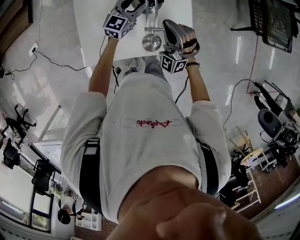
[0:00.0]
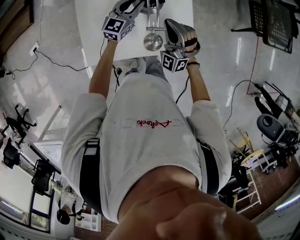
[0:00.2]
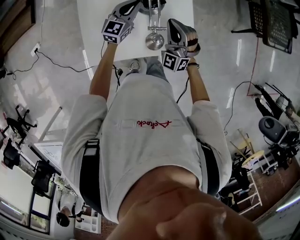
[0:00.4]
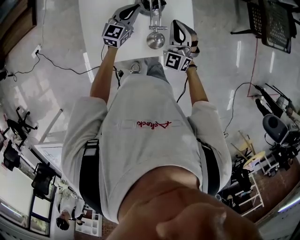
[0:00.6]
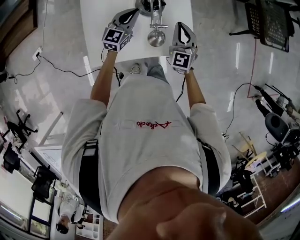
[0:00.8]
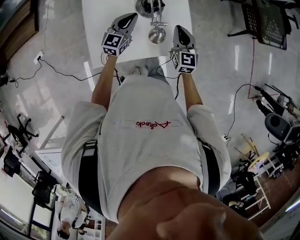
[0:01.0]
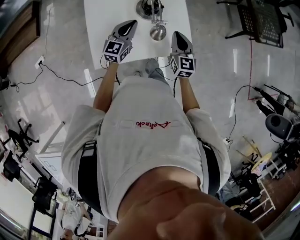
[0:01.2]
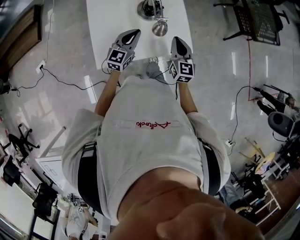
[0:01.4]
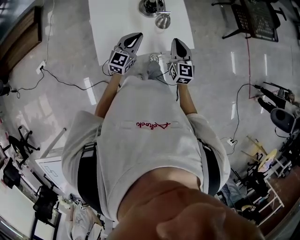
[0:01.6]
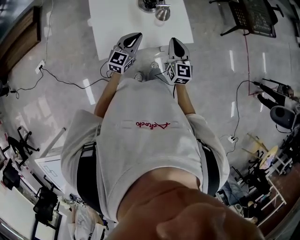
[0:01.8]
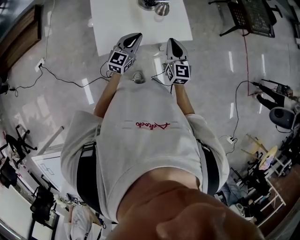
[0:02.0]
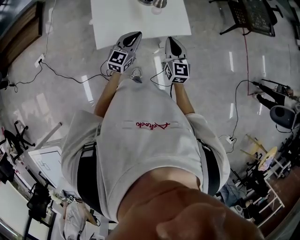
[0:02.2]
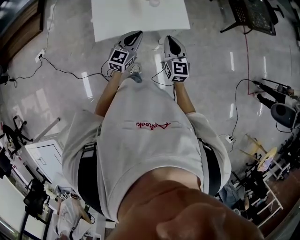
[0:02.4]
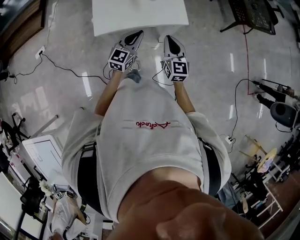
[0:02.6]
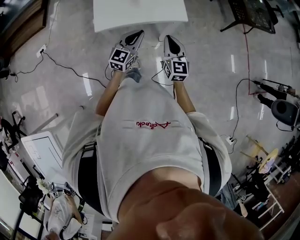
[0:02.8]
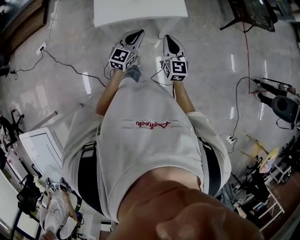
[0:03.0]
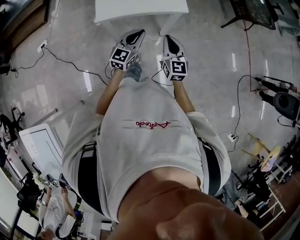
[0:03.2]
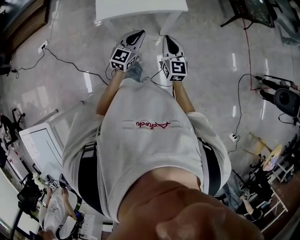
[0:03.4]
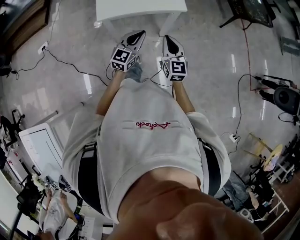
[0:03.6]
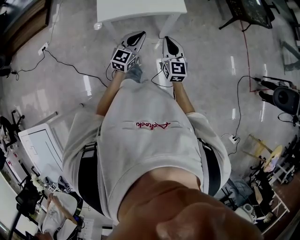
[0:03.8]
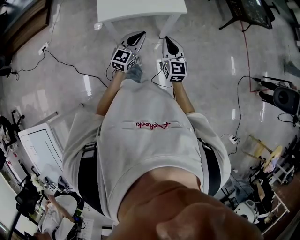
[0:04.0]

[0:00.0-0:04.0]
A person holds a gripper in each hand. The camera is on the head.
0:00.0 to 0:01.4: The left gripper shifts roughly 15 cm backward, and closes up; the right gripper travels to the right and backward by about 10 cm, and rolls clockwise, seen from behind, by some 70 degrees.
0:01.4 to 0:02.6: The left gripper travels backward and to the right by about 20 cm, while the right gripper travels backward by about 20 cm.
0:02.6 to 0:04.0: Both grippers travel together backward, roughly 10 cm.

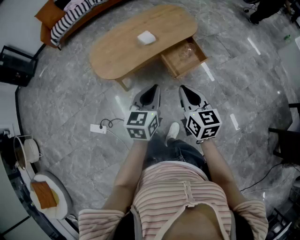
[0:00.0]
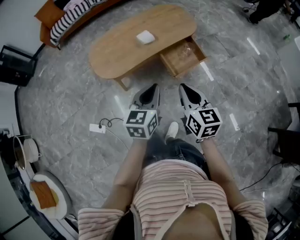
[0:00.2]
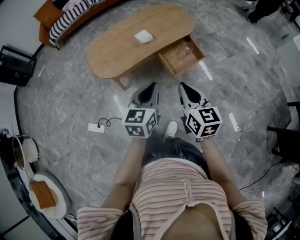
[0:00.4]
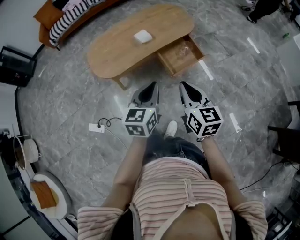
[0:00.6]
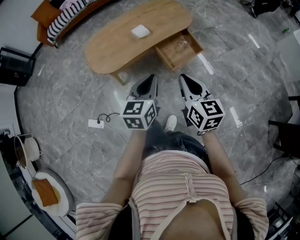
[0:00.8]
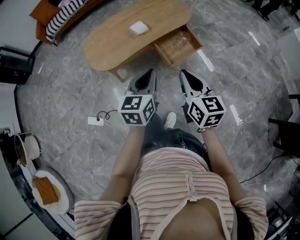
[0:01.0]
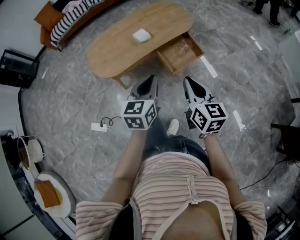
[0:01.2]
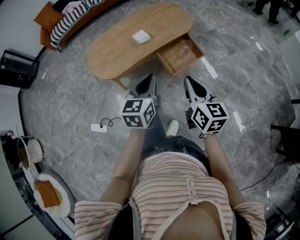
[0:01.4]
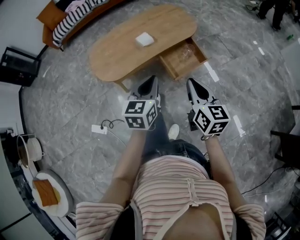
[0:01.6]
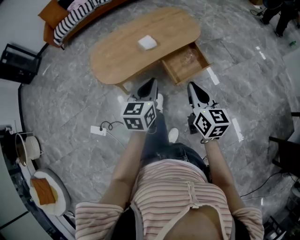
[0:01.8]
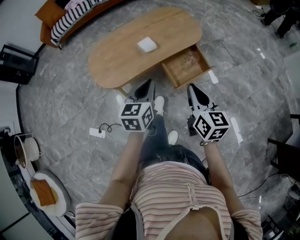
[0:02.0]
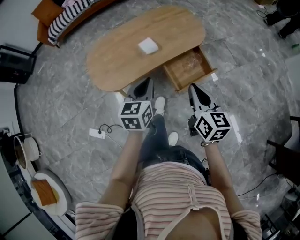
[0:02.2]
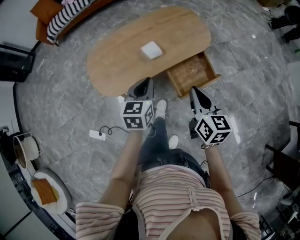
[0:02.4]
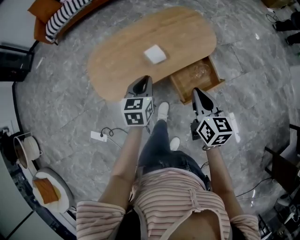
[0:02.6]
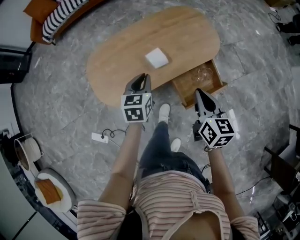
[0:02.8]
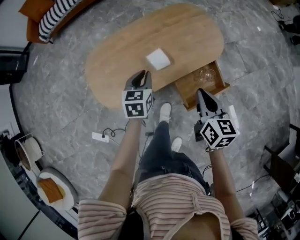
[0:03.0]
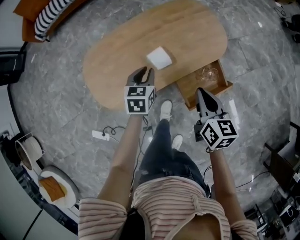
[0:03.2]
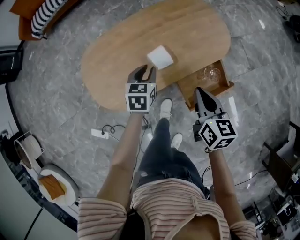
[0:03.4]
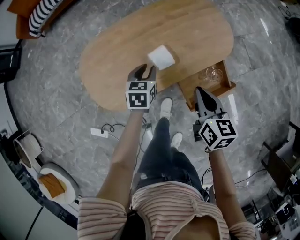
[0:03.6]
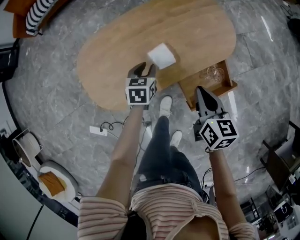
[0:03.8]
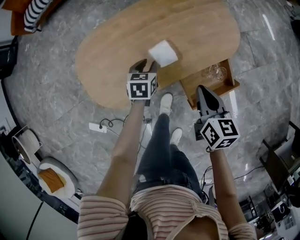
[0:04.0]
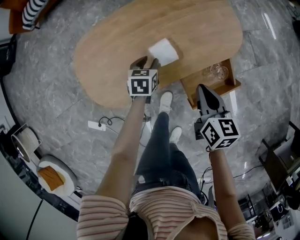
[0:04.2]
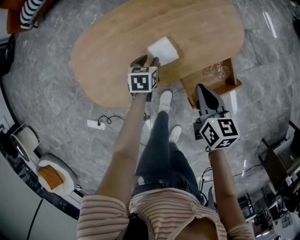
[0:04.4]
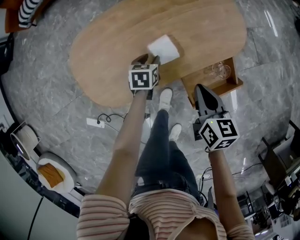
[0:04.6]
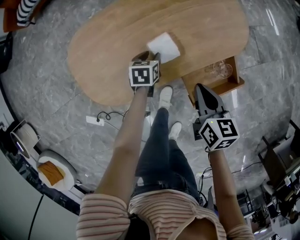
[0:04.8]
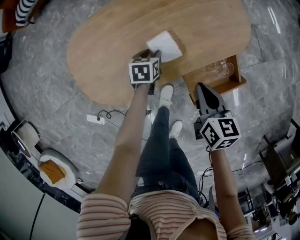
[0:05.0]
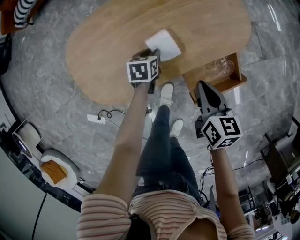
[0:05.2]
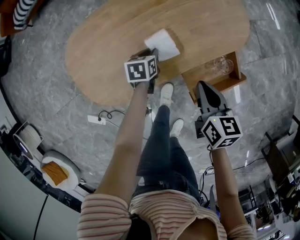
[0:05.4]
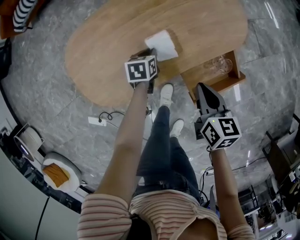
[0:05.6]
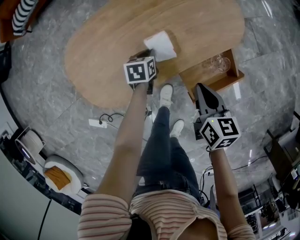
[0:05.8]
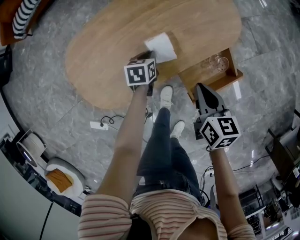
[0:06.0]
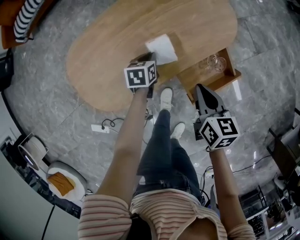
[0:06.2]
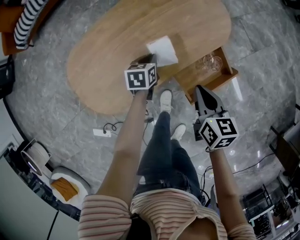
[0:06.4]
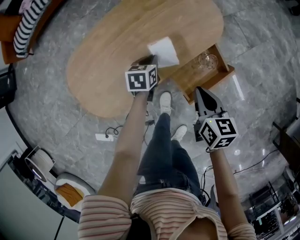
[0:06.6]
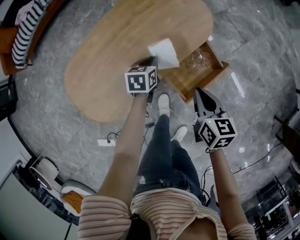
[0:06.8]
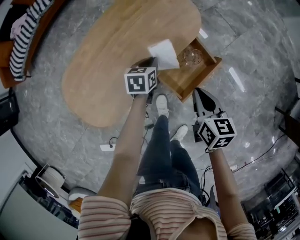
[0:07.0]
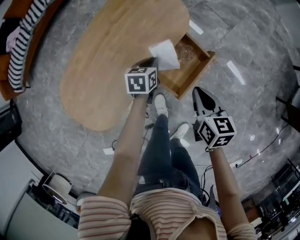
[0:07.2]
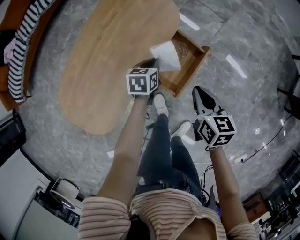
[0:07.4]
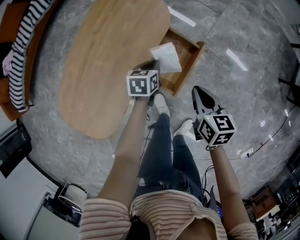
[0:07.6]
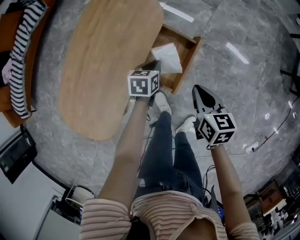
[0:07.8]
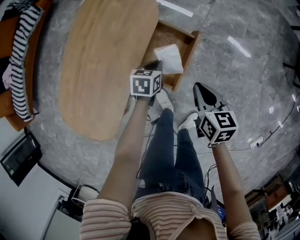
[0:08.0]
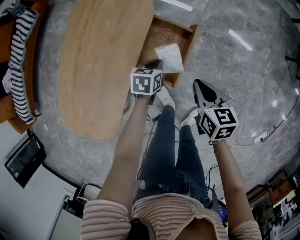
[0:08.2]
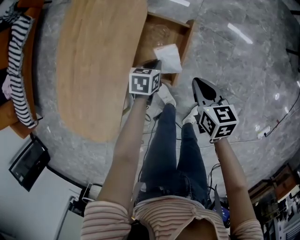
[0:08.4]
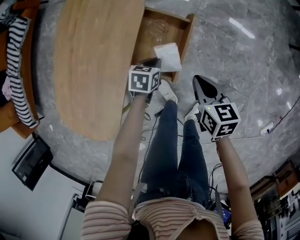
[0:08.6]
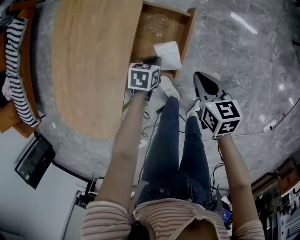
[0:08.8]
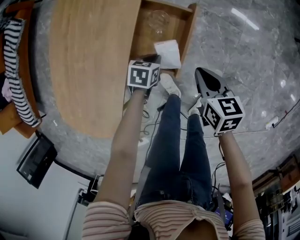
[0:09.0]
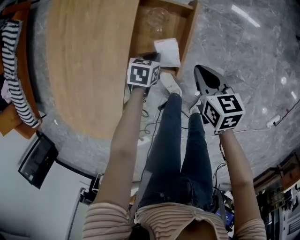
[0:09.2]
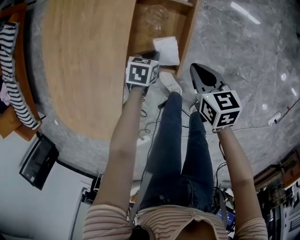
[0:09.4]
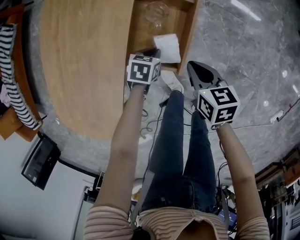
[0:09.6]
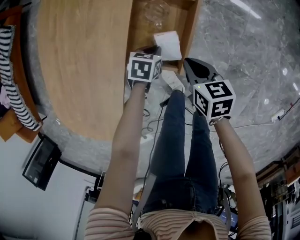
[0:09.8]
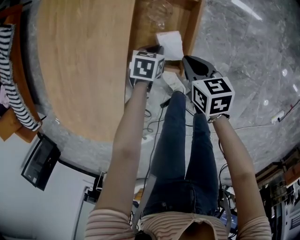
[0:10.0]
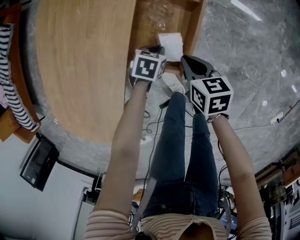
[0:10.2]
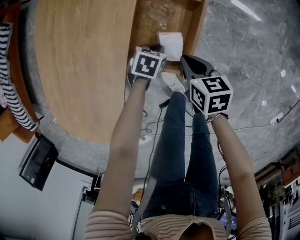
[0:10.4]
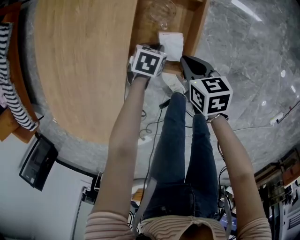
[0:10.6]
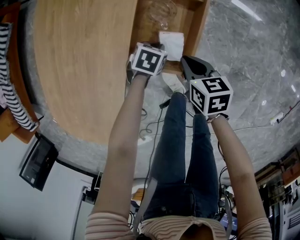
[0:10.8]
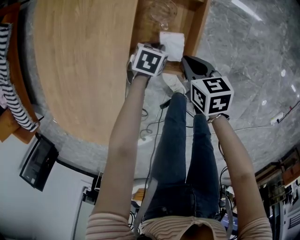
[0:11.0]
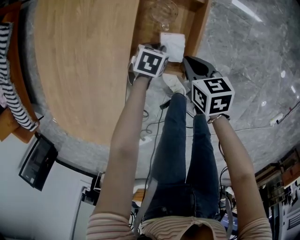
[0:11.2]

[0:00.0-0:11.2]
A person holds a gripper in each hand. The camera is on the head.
0:00.0 to 0:01.6: The left gripper heads forward, covering roughly 5 cm, while the right gripper moves to the right, roughly 5 cm.
0:01.6 to 0:03.2: The left gripper heads forward and downward, covering about 40 cm, and changes its angle by roughly 20 degrees, while the right gripper moves forward, about 35 cm.
0:03.2 to 0:04.8: The right gripper moves downward, roughly 10 cm. The left gripper is displaced downward by roughly 20 cm, rotates roughly 20 degrees, and opens its fingers.
0:04.8 to 0:06.4: The left gripper moves to the right and upward, about 5 cm, and closes; the right gripper changes place by roughly 5 cm.
0:06.4 to 0:08.0: The left gripper shifts by some 25 cm, and rotates some 40 degrees. The right gripper shifts by some 20 cm, and rotates about 30 degrees.
0:08.0 to 0:09.6: The two grippers go some 15 cm downward. The left gripper rotates about 20 degrees.
0:09.6 to 0:11.2: The right gripper travels downward by about 5 cm.

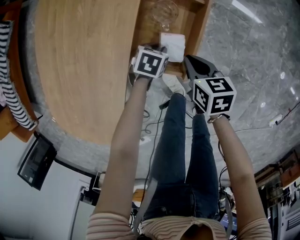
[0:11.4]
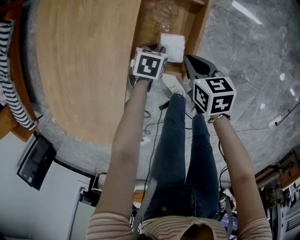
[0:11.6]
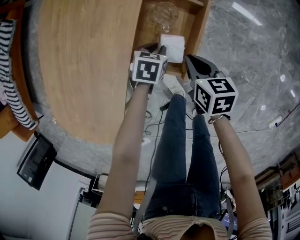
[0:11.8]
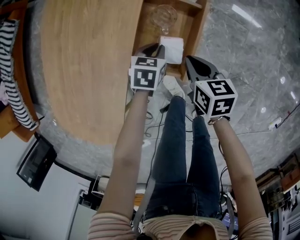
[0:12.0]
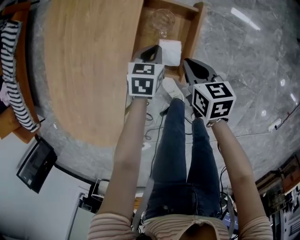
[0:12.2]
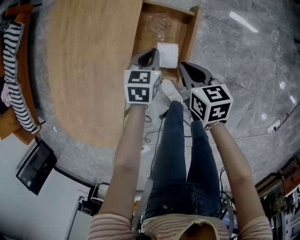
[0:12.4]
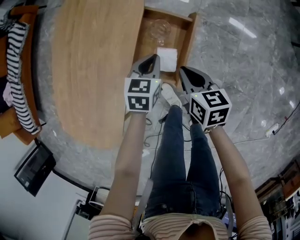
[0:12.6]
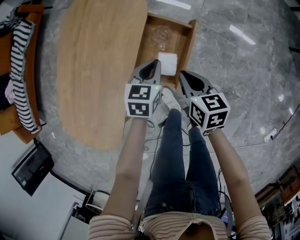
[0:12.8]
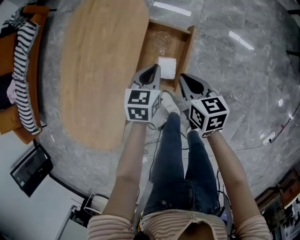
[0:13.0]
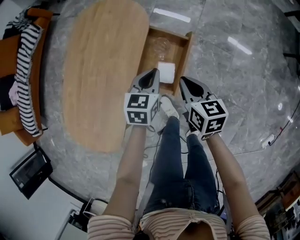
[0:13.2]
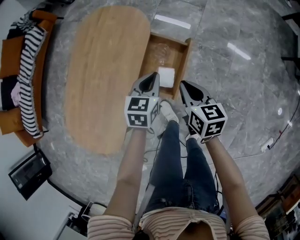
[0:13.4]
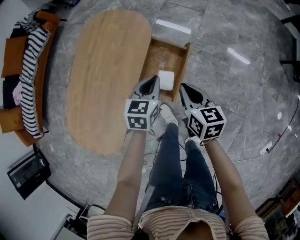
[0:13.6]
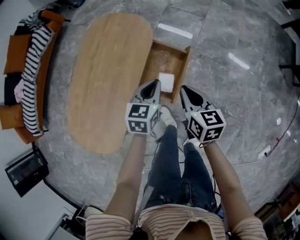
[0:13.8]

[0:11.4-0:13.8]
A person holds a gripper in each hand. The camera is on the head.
0:11.4 to 0:12.6: The right gripper is displaced upward by roughly 10 cm. Meanwhile the left gripper shifts about 20 cm upward, and swivels some 30 degrees.
0:12.6 to 0:13.8: The two grippers go about 15 cm upward.

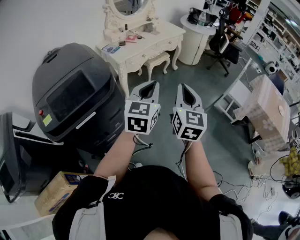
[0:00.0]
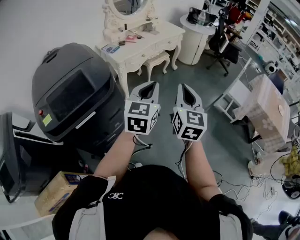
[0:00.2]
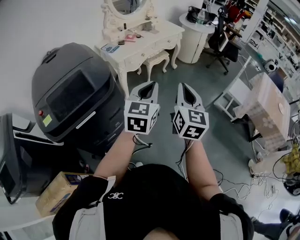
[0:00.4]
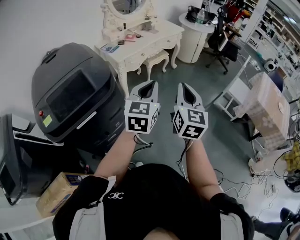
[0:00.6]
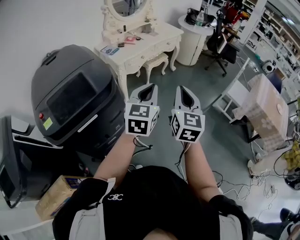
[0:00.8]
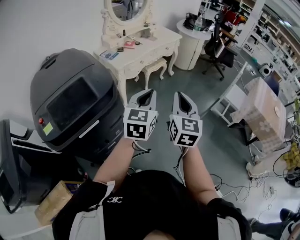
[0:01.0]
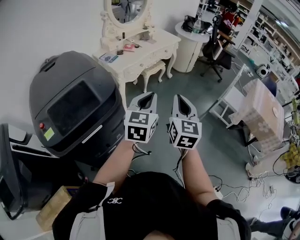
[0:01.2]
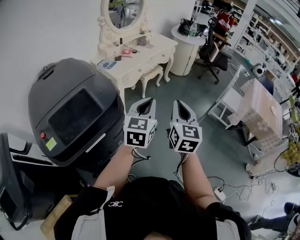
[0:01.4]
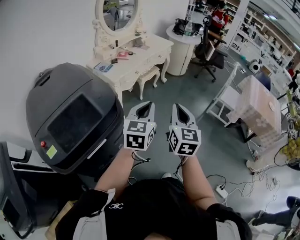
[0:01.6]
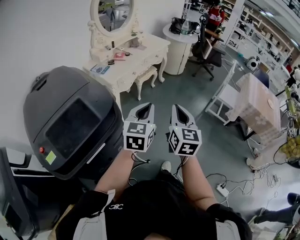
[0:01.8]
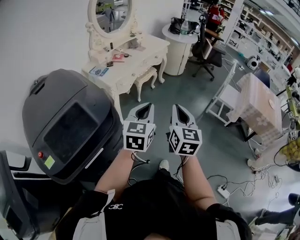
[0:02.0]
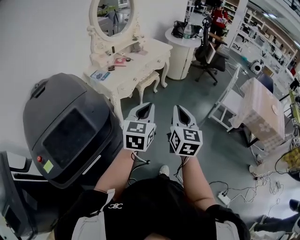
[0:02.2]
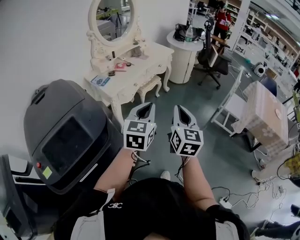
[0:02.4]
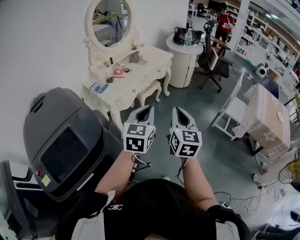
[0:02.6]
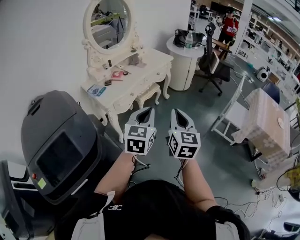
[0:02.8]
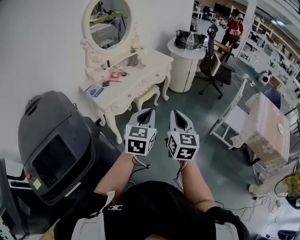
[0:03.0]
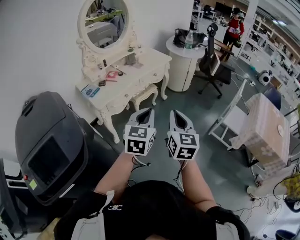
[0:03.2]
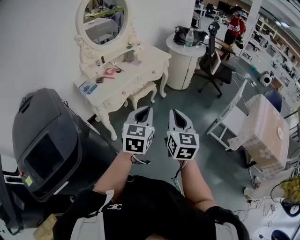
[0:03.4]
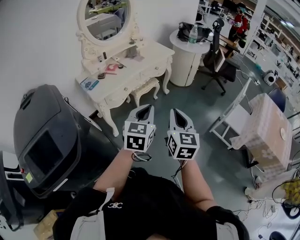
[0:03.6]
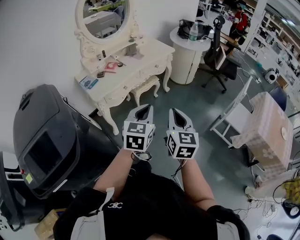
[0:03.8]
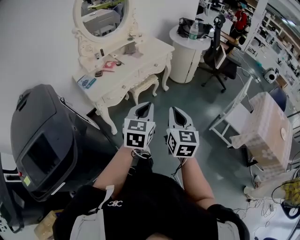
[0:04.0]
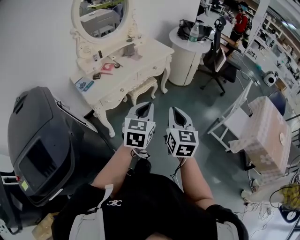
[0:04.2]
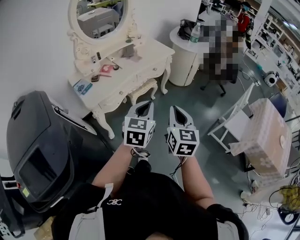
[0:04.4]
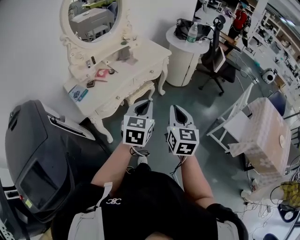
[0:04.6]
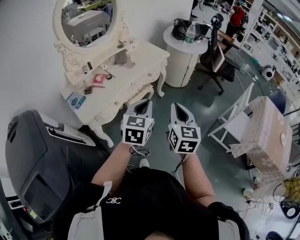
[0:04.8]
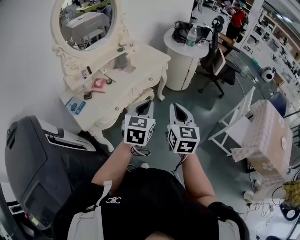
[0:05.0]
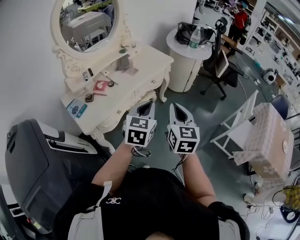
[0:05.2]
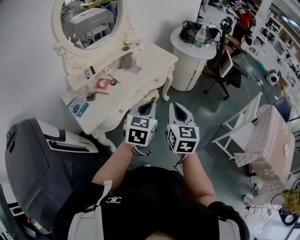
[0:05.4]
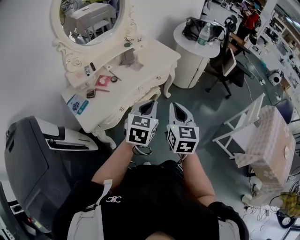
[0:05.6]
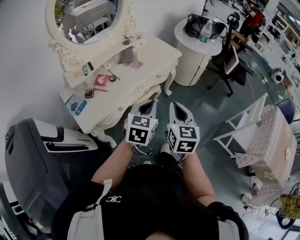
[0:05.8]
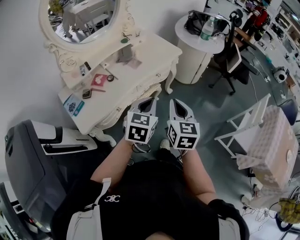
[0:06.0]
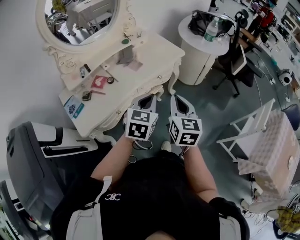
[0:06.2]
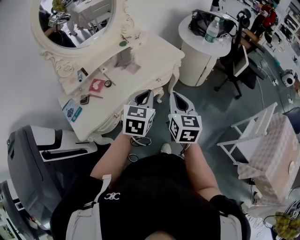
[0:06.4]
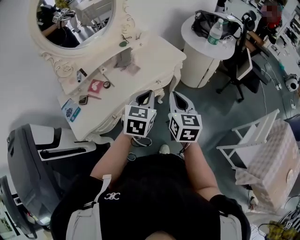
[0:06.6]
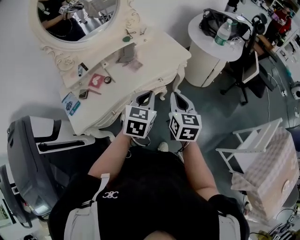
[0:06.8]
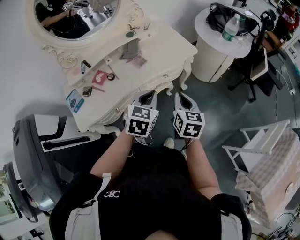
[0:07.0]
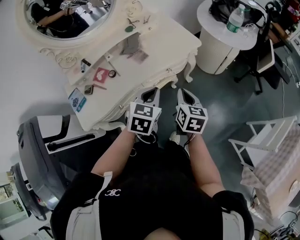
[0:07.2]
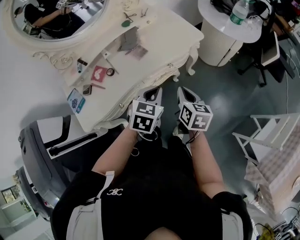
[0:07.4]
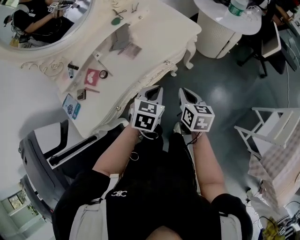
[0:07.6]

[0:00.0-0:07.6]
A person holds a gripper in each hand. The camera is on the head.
0:00.0 to 0:01.6: The two grippers go roughly 5 cm to the left.
0:01.6 to 0:03.0: The left gripper moves forward and to the right, approximately 25 cm. The right gripper moves forward, some 20 cm.
0:03.0 to 0:04.6: The two grippers go some 20 cm forward.
0:04.6 to 0:06.0: Both grippers move forward, approximately 20 cm.
0:06.0 to 0:07.6: The left gripper goes some 25 cm forward and downward. The right gripper travels downward and forward by about 25 cm, and rotates about 30 degrees.
